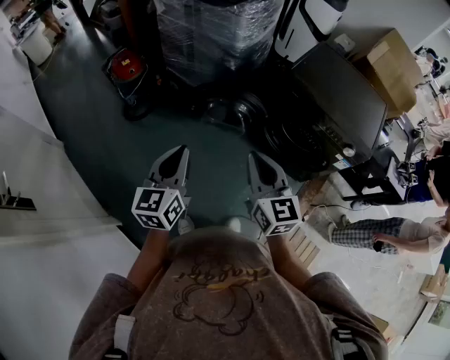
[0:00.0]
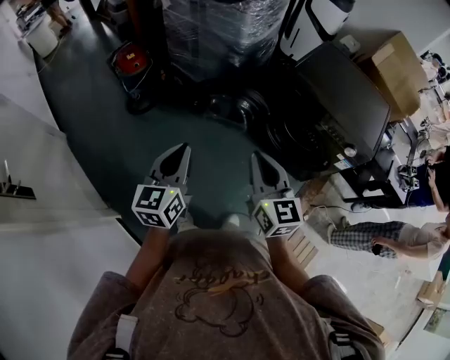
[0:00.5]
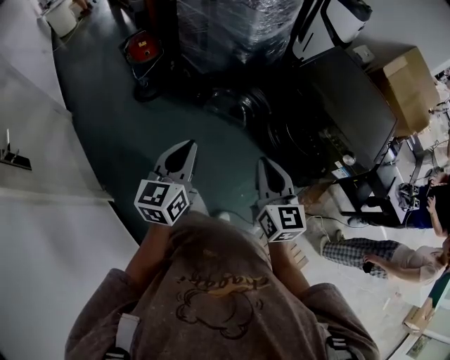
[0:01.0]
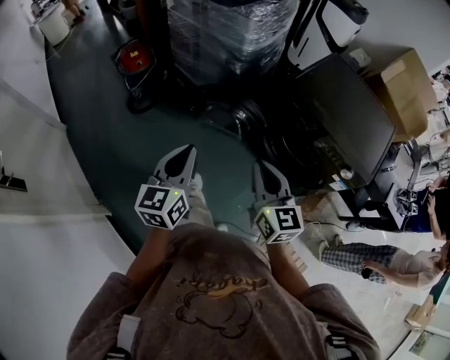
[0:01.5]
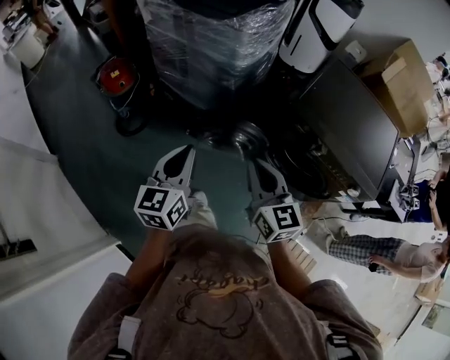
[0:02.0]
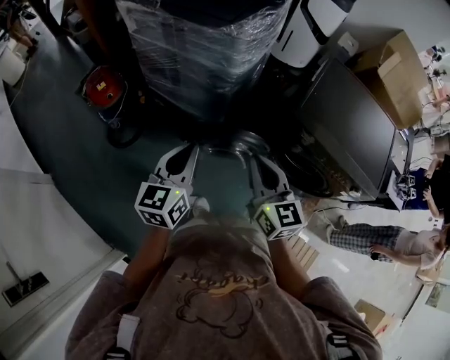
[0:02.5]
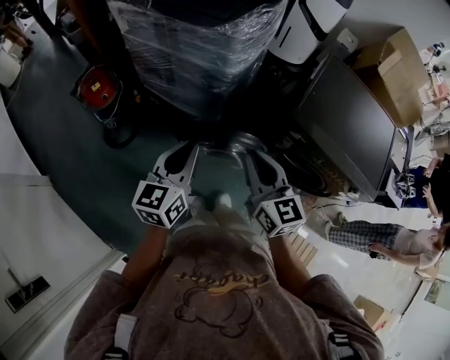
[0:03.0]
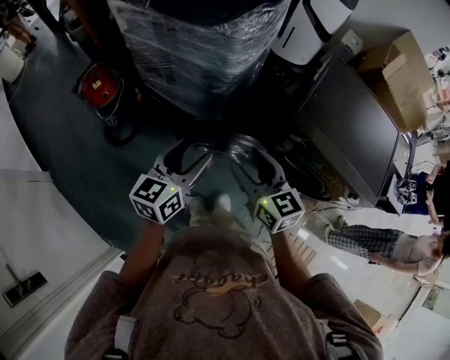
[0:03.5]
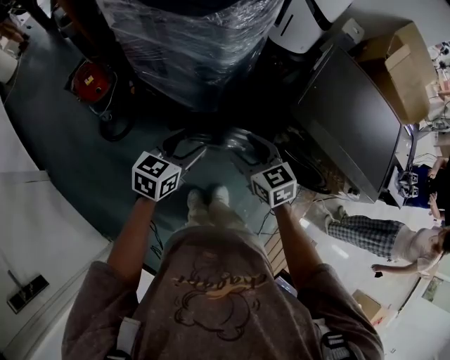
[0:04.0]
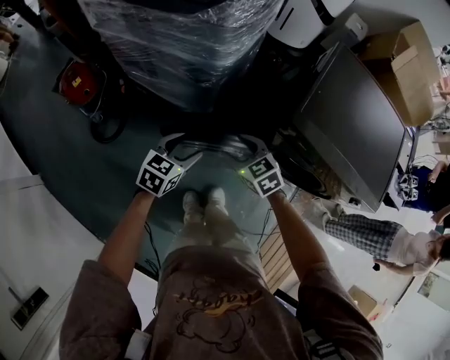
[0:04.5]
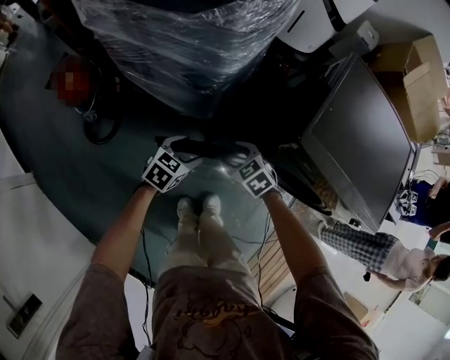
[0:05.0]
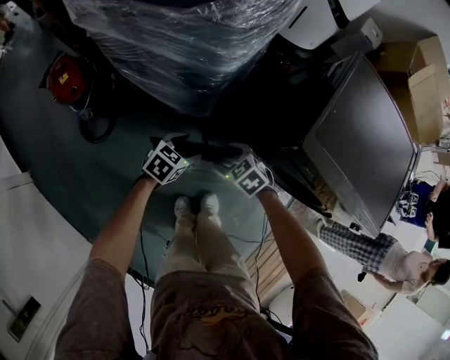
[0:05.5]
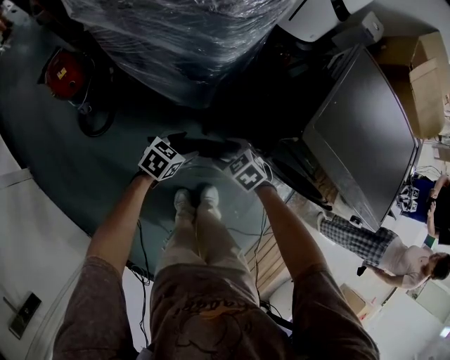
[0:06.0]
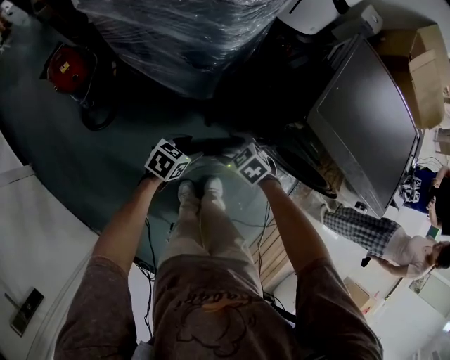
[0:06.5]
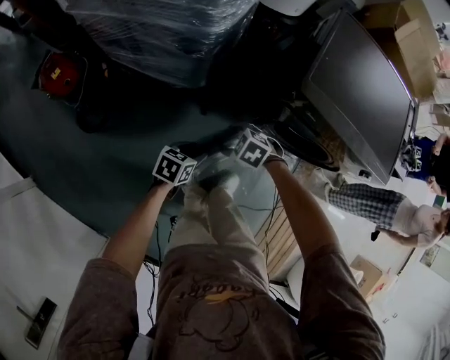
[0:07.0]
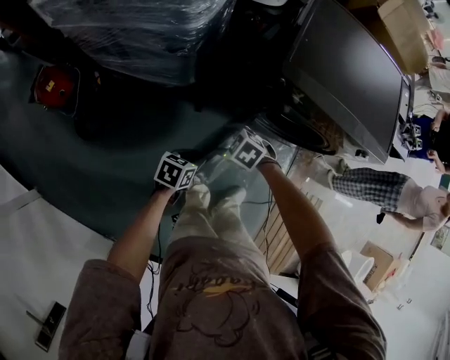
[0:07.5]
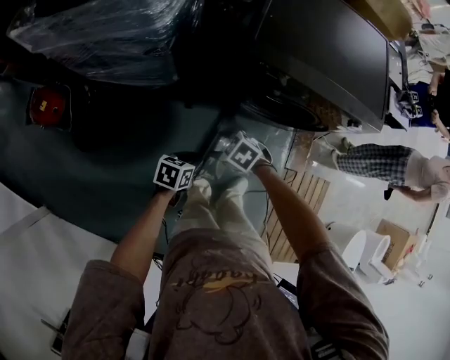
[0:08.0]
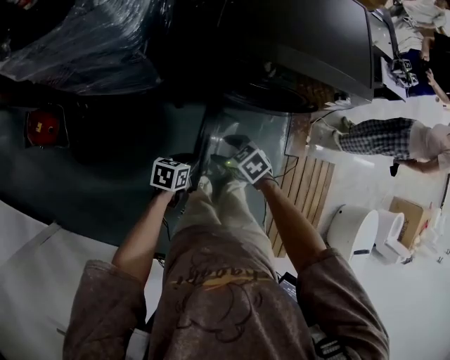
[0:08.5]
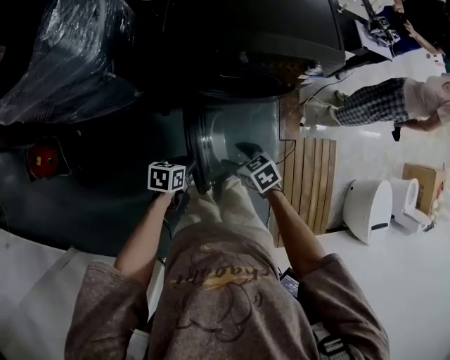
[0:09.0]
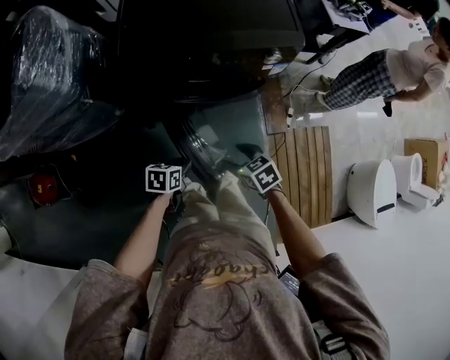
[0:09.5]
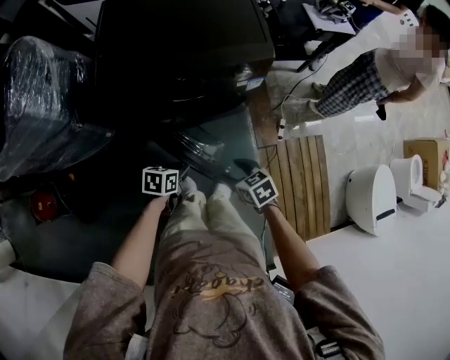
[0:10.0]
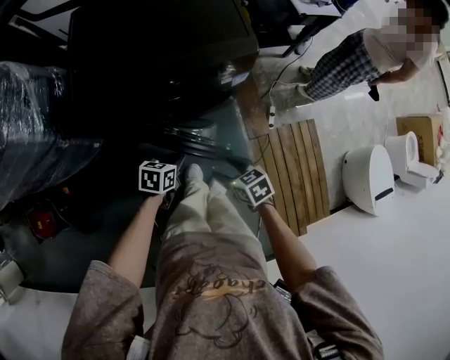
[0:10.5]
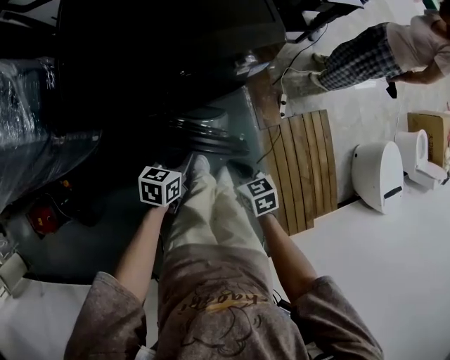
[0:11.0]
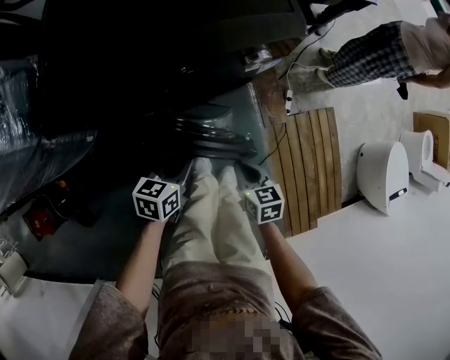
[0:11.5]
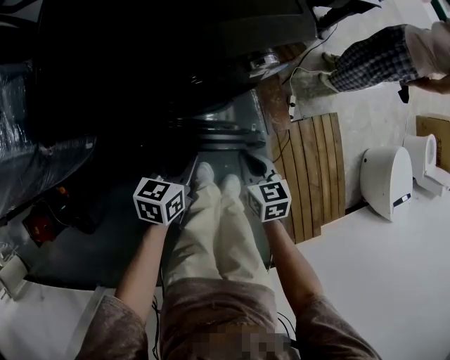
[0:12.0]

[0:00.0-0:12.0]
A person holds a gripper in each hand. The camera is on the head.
0:00.0 to 0:02.0: The grippers both shift forward by about 20 cm.
0:02.0 to 0:04.0: Both grippers travel together forward and downward, about 20 cm. The right gripper rotates some 20 degrees, and opens; the left gripper swivels about 30 degrees, and opens.
0:04.0 to 0:06.0: Both grippers move downward, roughly 25 cm. The left gripper changes its angle by about 30 degrees. The right gripper rotates about 30 degrees.
0:06.0 to 0:08.0: The right gripper shifts by some 20 cm. The left gripper ends up some 25 cm from where it was, and closes.
0:08.0 to 0:10.0: The right gripper ends up some 35 cm from where it was, and turns by roughly 50 degrees; the left gripper moves about 25 cm.
0:10.0 to 0:12.0: The right gripper travels forward and downward by approximately 15 cm, rotates some 30 degrees, and closes up, while the left gripper goes about 10 cm forward.

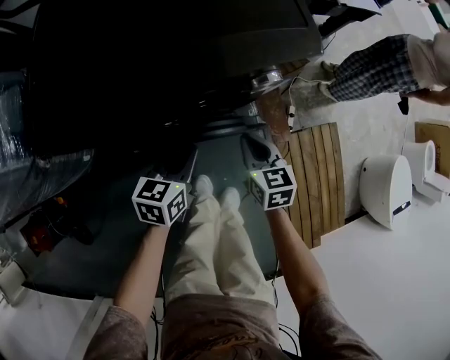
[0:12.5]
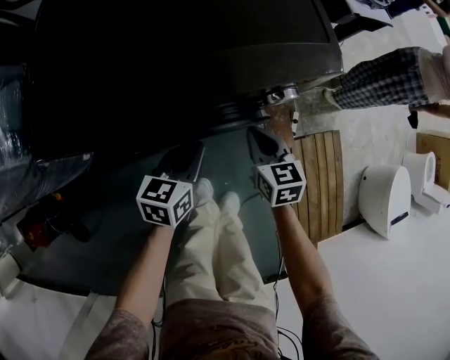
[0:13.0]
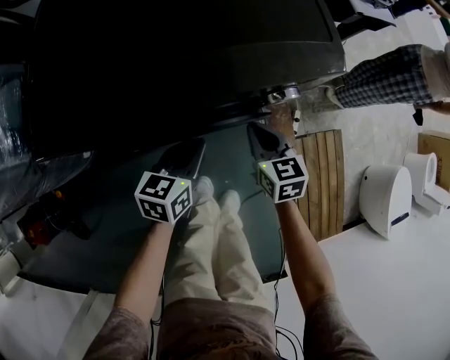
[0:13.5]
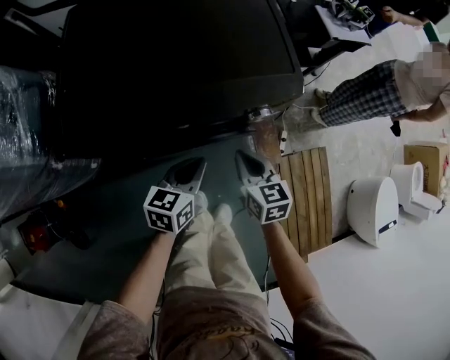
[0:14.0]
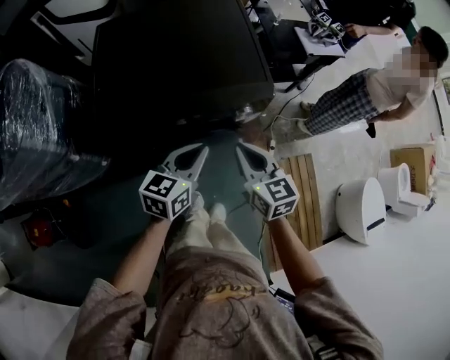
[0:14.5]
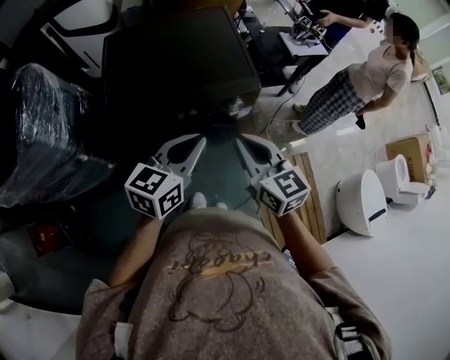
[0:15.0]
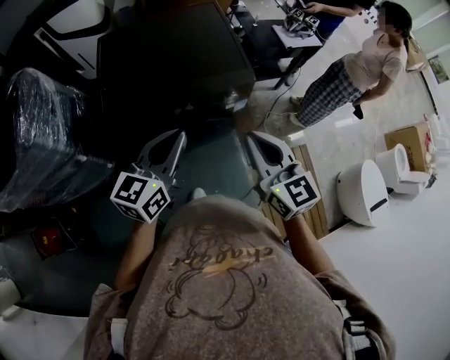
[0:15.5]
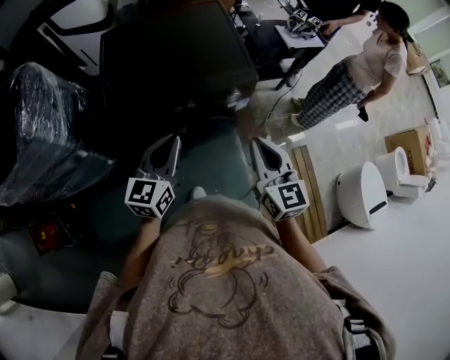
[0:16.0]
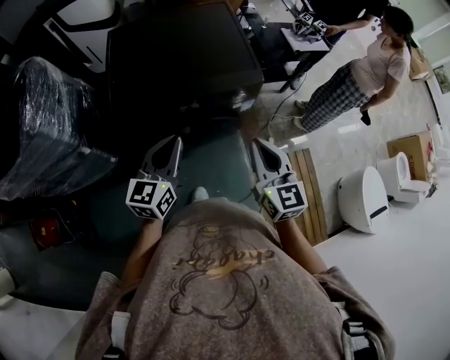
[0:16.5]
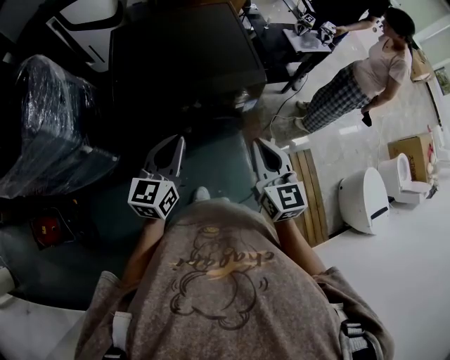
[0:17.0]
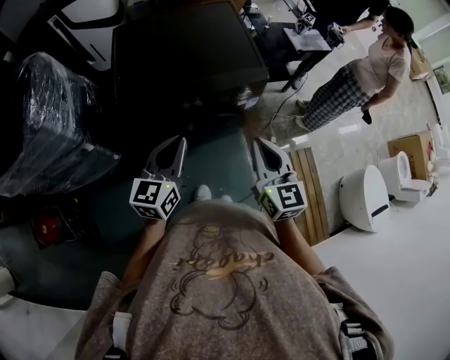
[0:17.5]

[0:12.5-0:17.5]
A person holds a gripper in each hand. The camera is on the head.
0:12.5 to 0:15.0: The grippers both shift upward by approximately 35 cm. The right gripper swivels approximately 30 degrees. Meanwhile the left gripper changes its angle by roughly 20 degrees.
0:15.0 to 0:17.5: The right gripper changes place by about 5 cm, while the left gripper goes approximately 10 cm to the left.

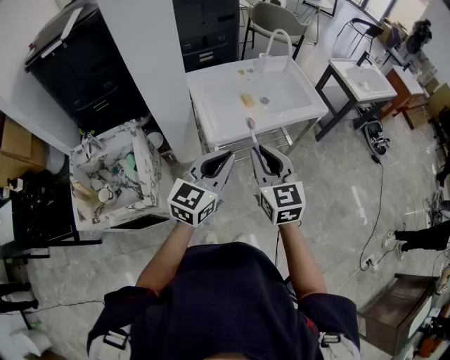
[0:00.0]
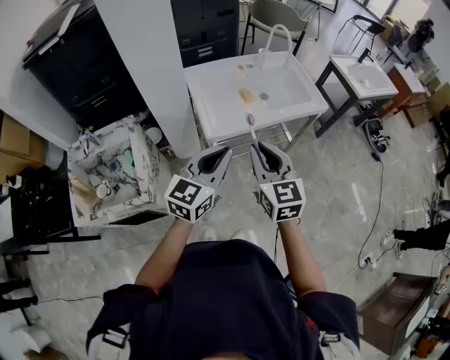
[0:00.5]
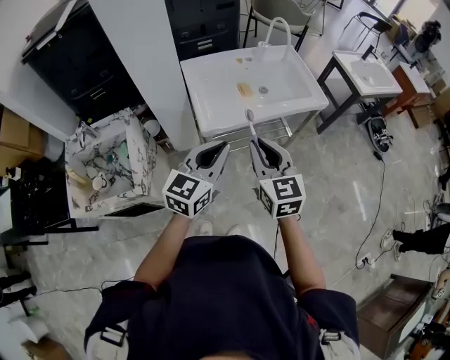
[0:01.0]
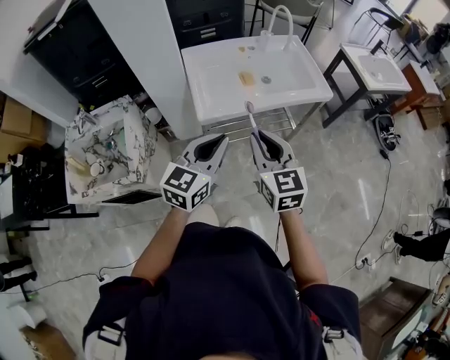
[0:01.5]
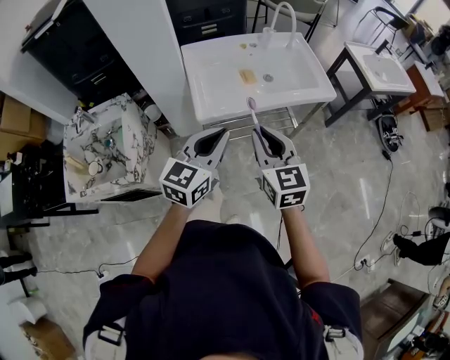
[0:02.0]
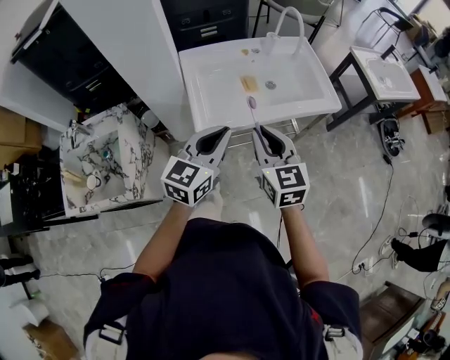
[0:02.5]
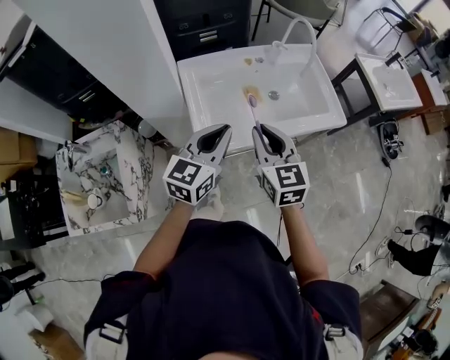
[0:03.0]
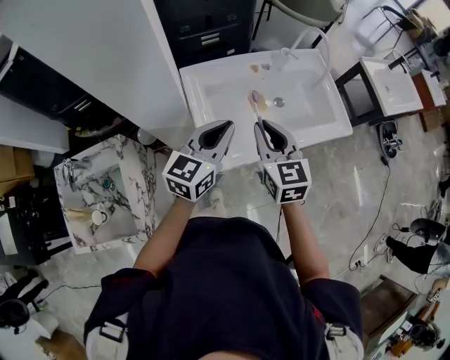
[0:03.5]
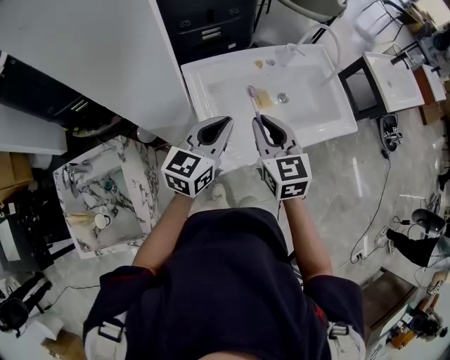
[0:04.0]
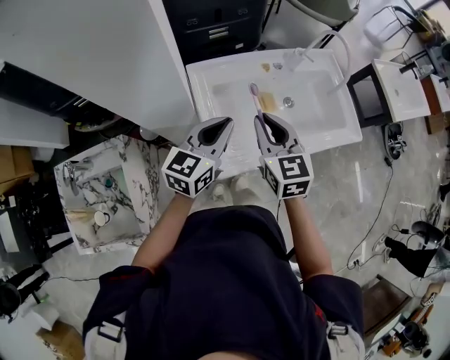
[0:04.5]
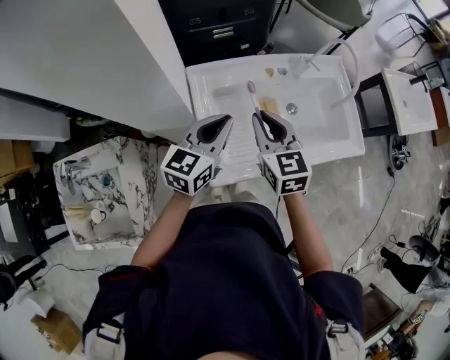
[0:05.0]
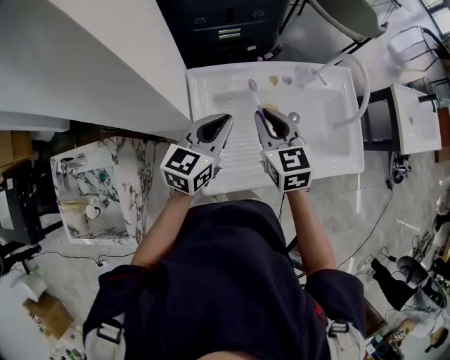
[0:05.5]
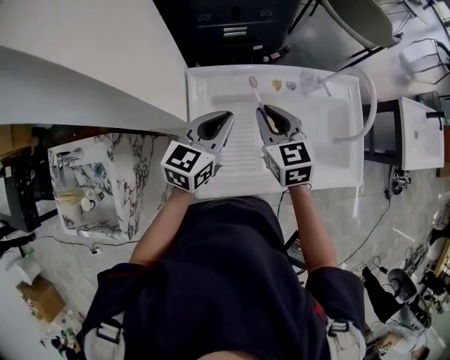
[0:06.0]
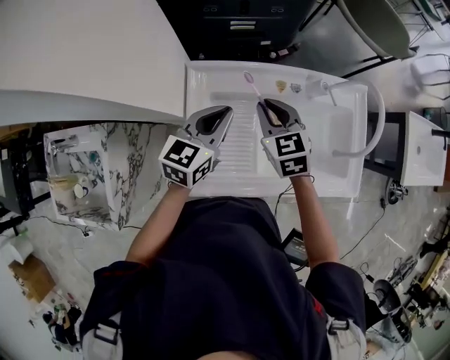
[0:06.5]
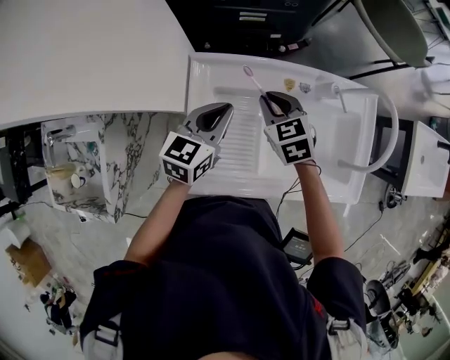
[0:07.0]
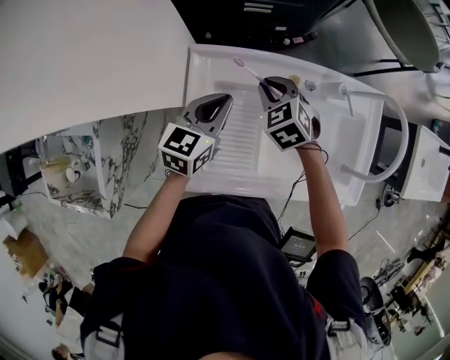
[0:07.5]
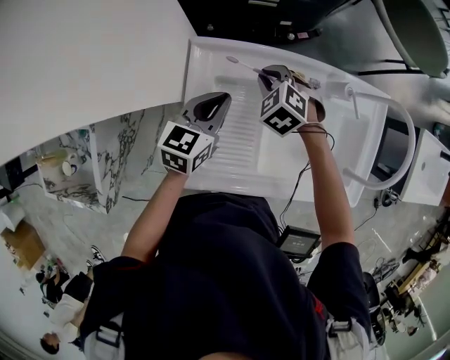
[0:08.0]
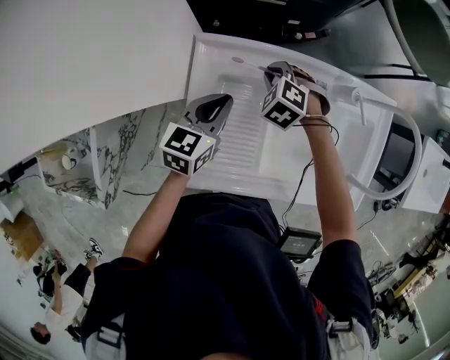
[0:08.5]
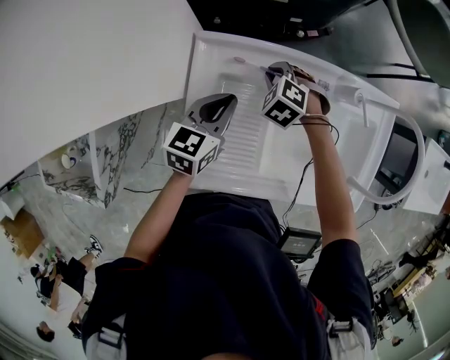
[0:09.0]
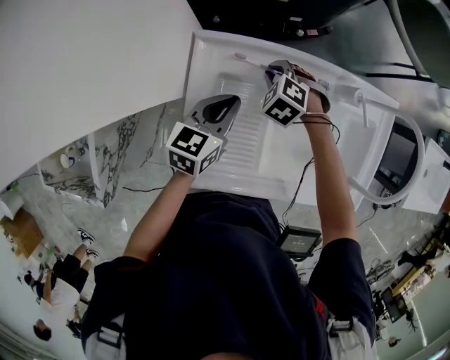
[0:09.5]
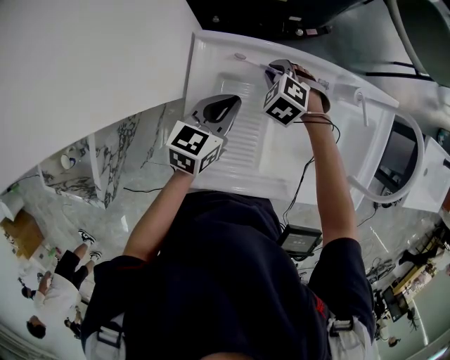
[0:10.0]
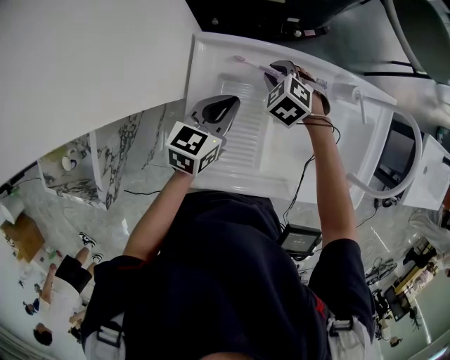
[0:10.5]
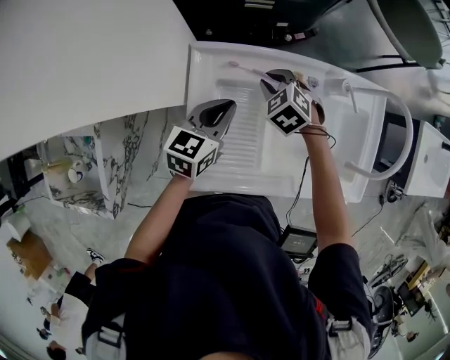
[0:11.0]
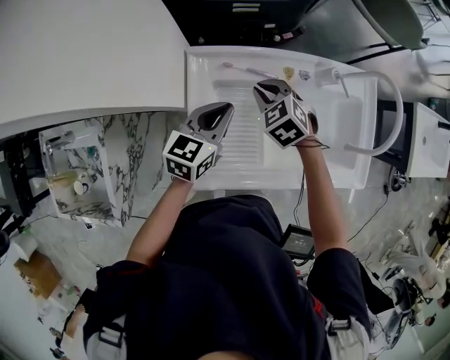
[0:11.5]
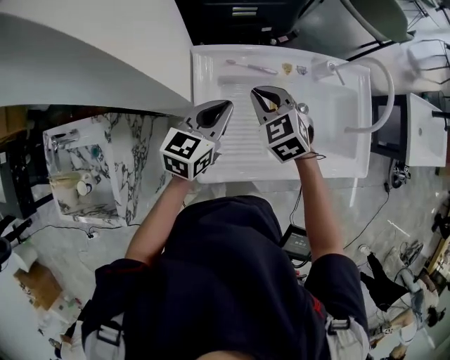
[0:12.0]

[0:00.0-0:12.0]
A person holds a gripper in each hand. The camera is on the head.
0:00.0 to 0:02.0: Both grippers travel together to the right, some 5 cm.
0:02.0 to 0:04.0: Both grippers travel together forward and to the left, about 30 cm.
0:04.0 to 0:06.0: The two grippers go about 15 cm forward.
0:06.0 to 0:08.0: The right gripper heads downward and forward, covering some 20 cm, and angles its fingers downward, by some 30 degrees. The left gripper shifts roughly 10 cm downward.
0:08.0 to 0:10.0: The right gripper moves downward, about 5 cm.
0:10.0 to 0:12.0: The right gripper moves upward and backward, roughly 20 cm, and turns by some 40 degrees. Meanwhile the left gripper shifts approximately 10 cm upward and backward.
